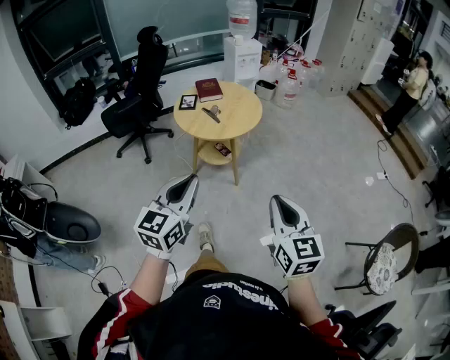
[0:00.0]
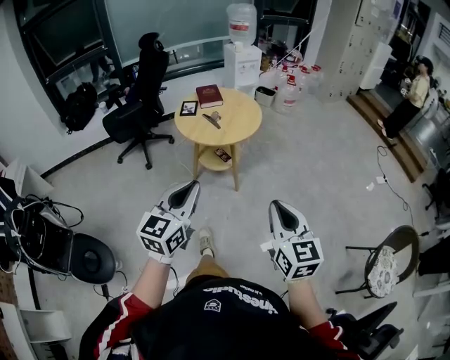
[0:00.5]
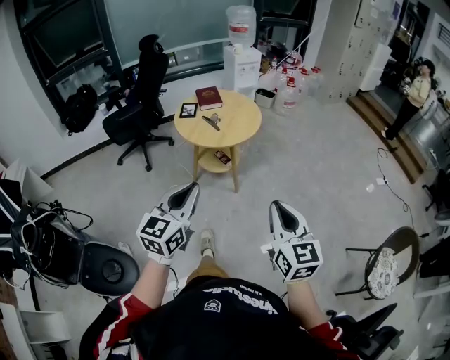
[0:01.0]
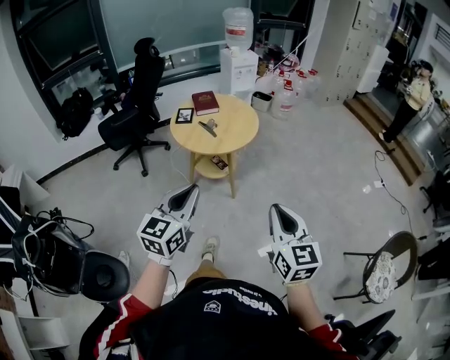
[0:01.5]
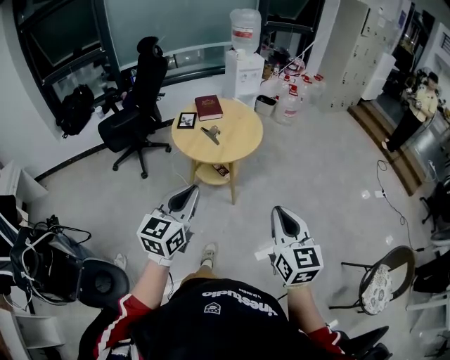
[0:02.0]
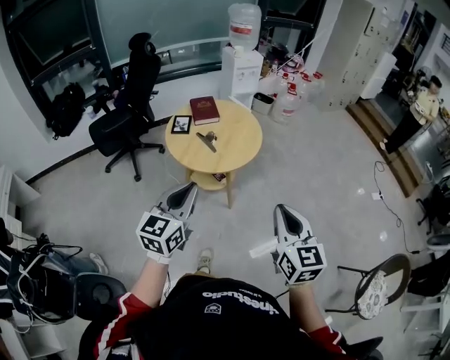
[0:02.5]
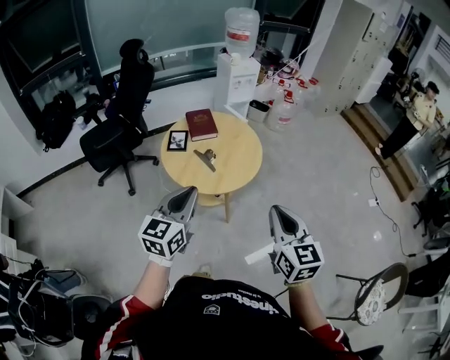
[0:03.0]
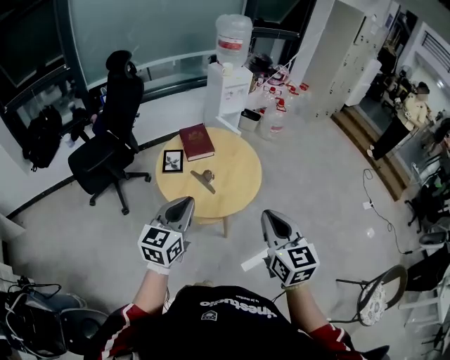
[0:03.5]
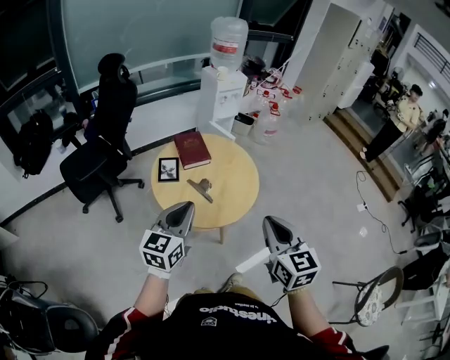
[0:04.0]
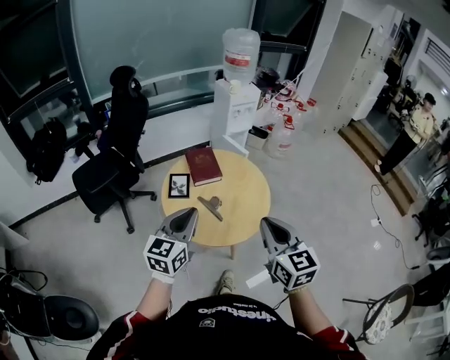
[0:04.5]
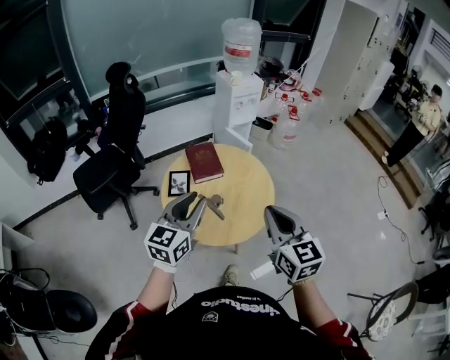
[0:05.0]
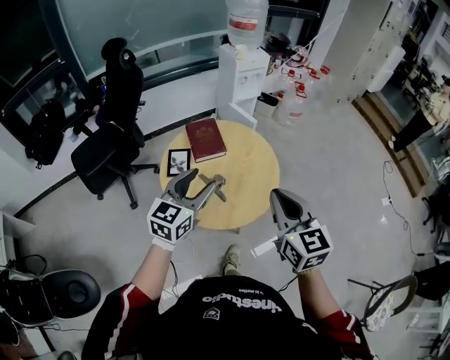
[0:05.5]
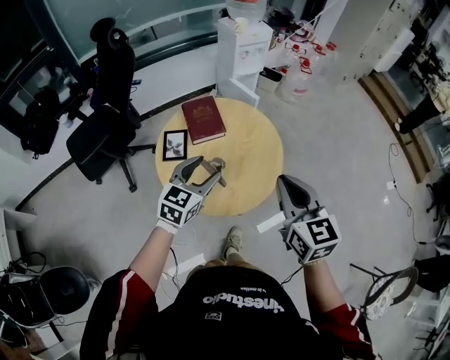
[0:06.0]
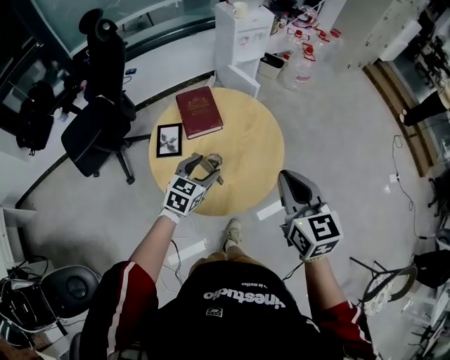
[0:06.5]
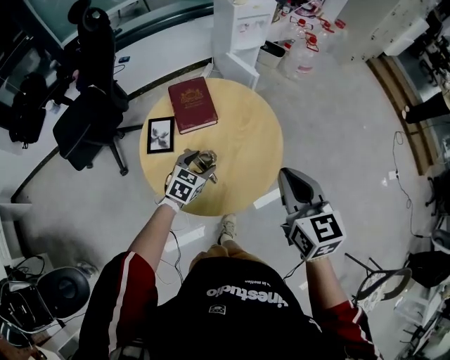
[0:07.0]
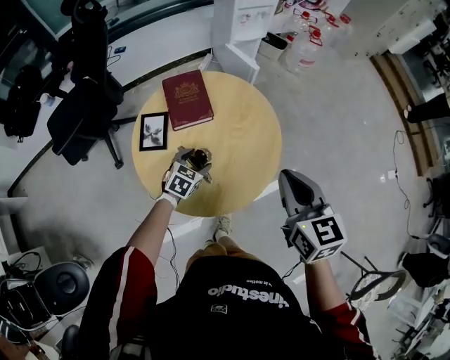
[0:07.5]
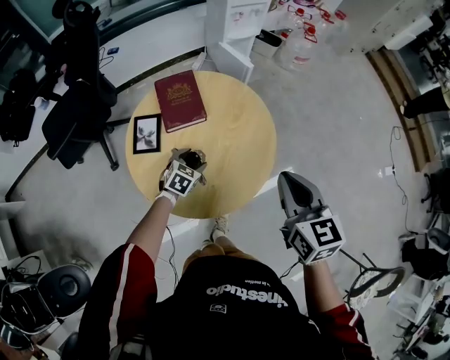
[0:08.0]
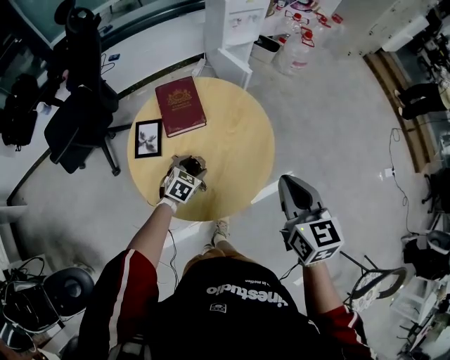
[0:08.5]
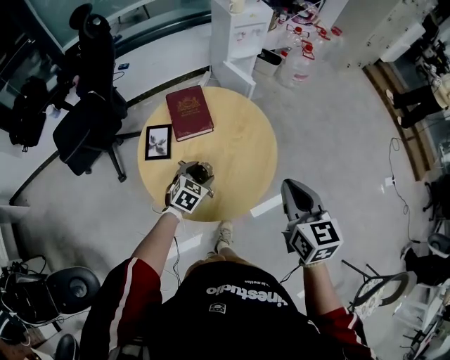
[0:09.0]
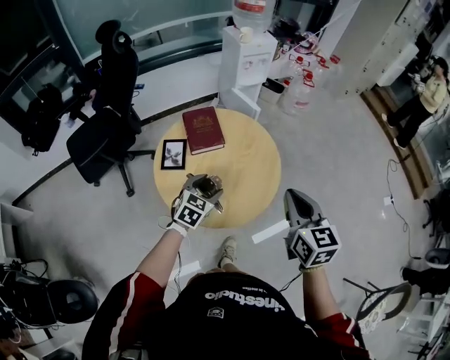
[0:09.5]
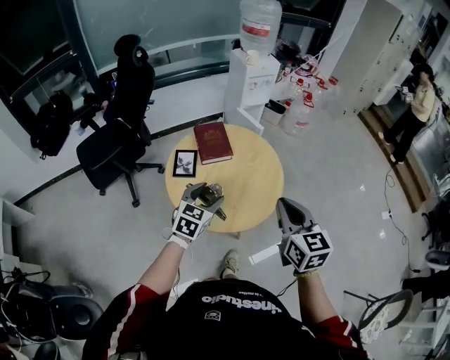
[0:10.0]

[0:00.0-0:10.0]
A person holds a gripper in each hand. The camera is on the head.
0:00.0 to 0:02.0: Both grippers move forward, some 10 cm.
0:02.0 to 0:04.0: The left gripper travels forward by some 35 cm. Meanwhile the right gripper is displaced forward and to the left by some 35 cm.
0:04.0 to 0:06.0: The right gripper heads forward, covering roughly 20 cm. Meanwhile the left gripper goes approximately 20 cm forward and downward, and opens its fingers.
0:06.0 to 0:08.0: The left gripper is displaced downward by approximately 30 cm, and rotates roughly 30 degrees, while the right gripper travels forward, downward and to the right by approximately 15 cm.
0:08.0 to 0:10.0: The right gripper travels backward, upward and to the left by approximately 15 cm, while the left gripper moves upward and backward, about 30 cm, and rotates roughly 20 degrees.

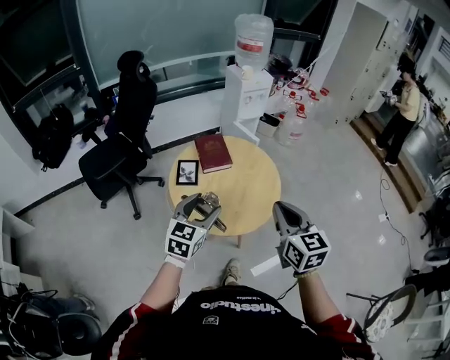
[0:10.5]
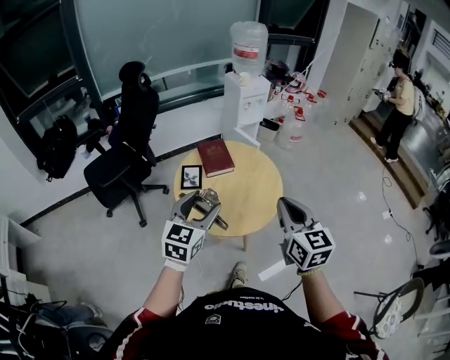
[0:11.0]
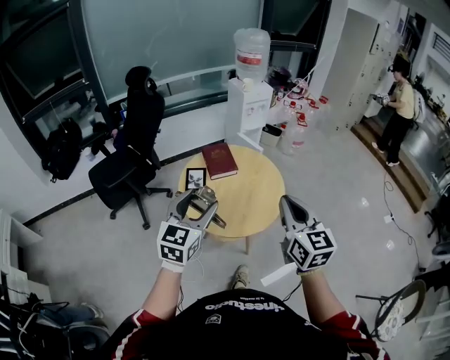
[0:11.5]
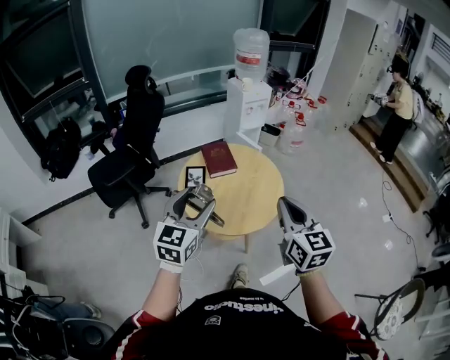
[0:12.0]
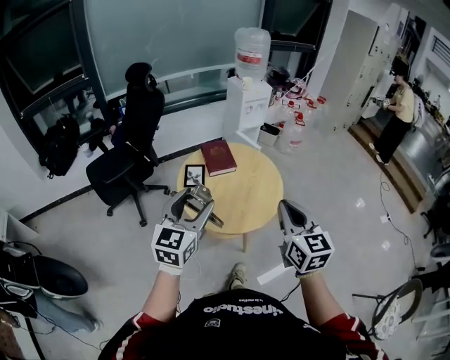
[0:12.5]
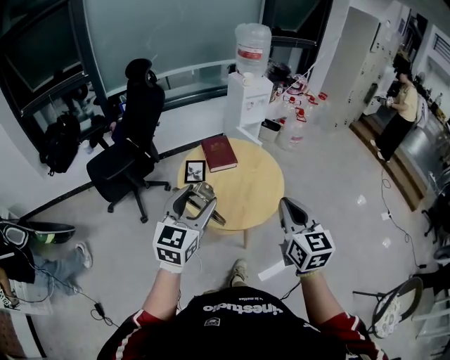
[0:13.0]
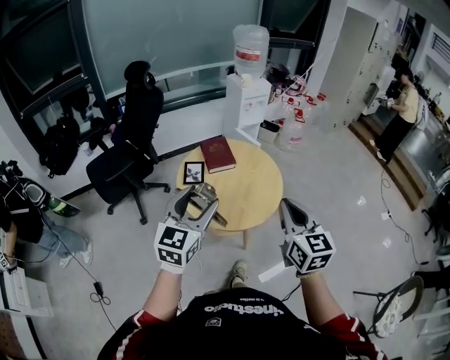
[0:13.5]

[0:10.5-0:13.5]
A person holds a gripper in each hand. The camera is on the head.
0:10.5 to 0:12.0: The right gripper heads upward, covering approximately 5 cm; the left gripper heads upward and backward, covering roughly 15 cm.
0:12.0 to 0:13.5: The grippers stay close to where they were, moving slightly.

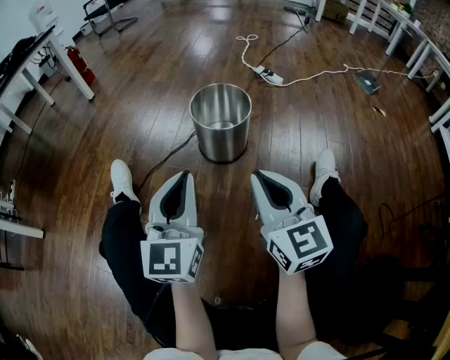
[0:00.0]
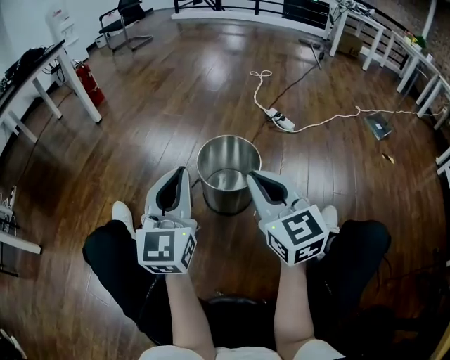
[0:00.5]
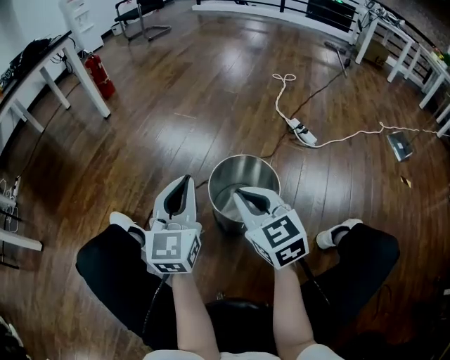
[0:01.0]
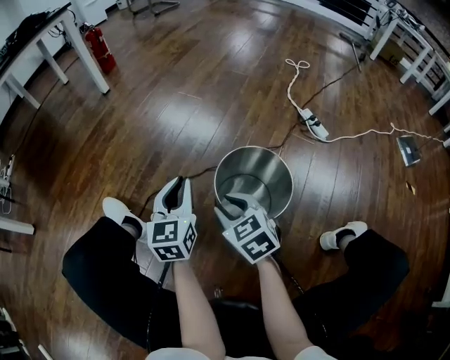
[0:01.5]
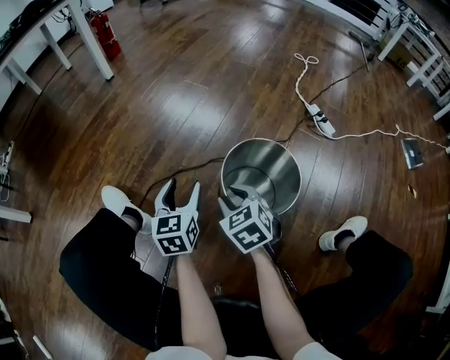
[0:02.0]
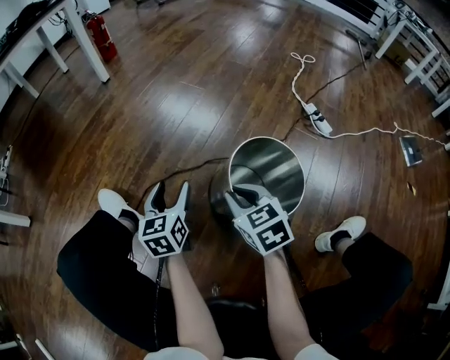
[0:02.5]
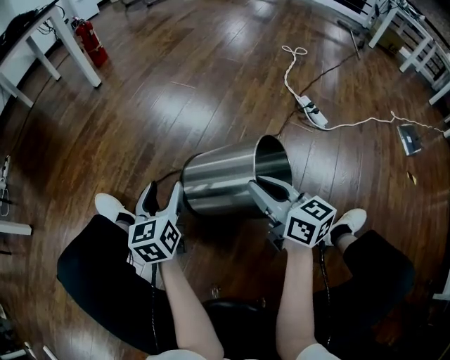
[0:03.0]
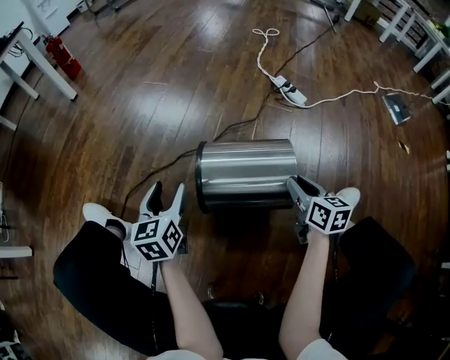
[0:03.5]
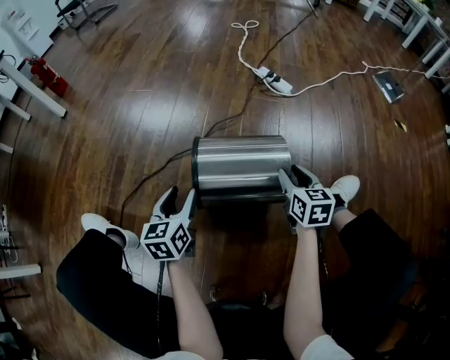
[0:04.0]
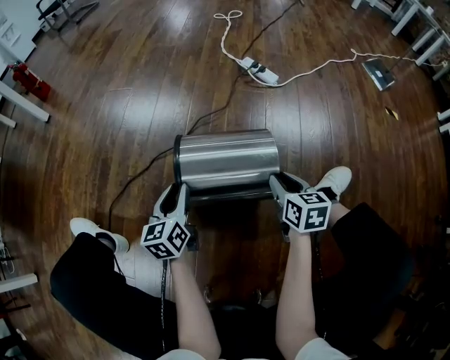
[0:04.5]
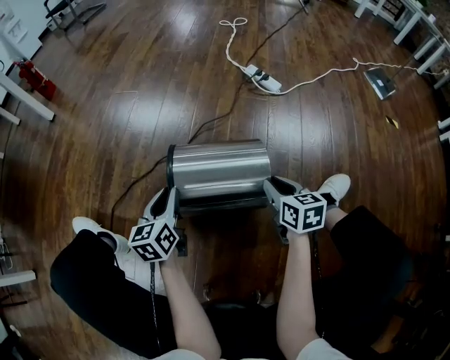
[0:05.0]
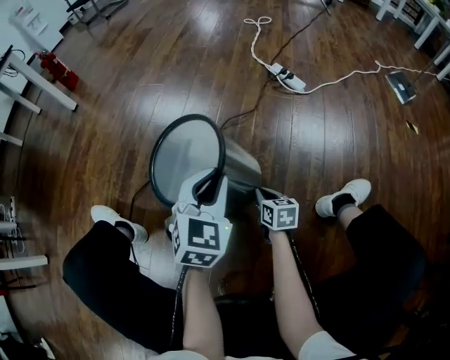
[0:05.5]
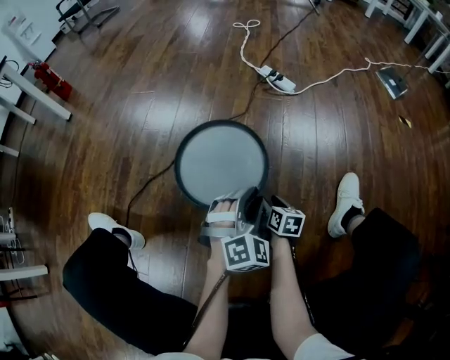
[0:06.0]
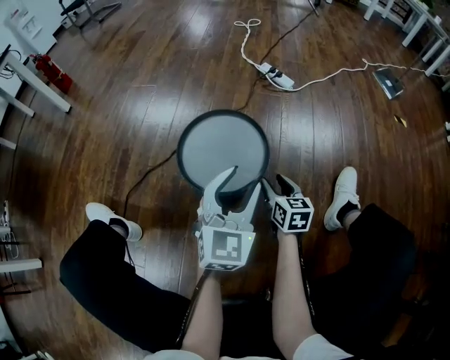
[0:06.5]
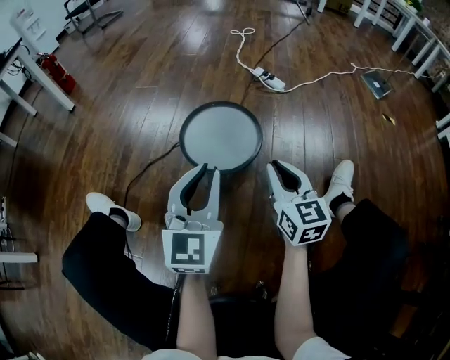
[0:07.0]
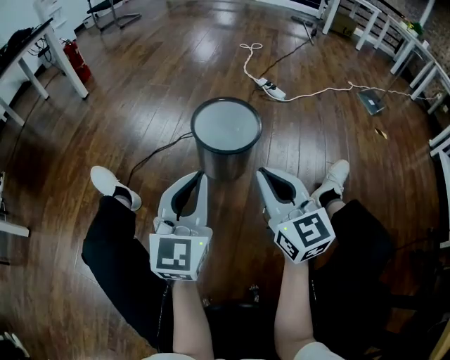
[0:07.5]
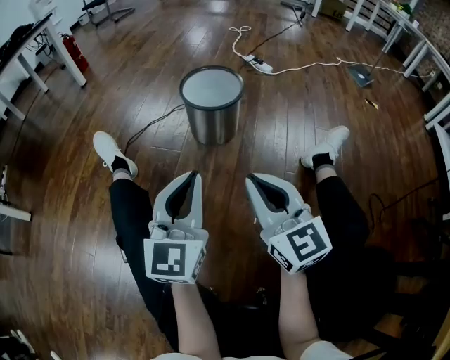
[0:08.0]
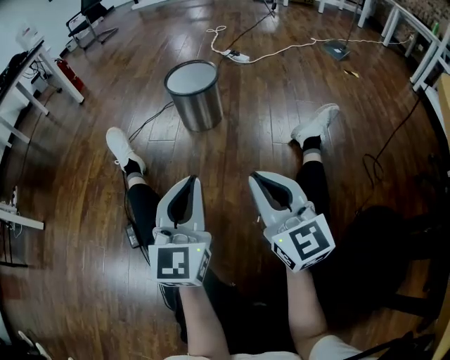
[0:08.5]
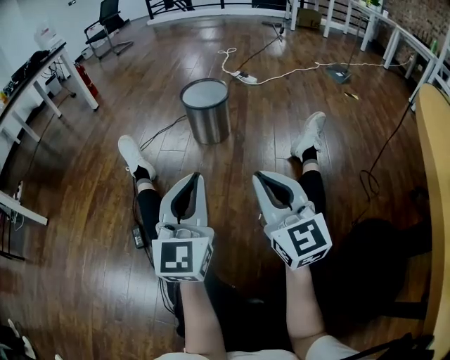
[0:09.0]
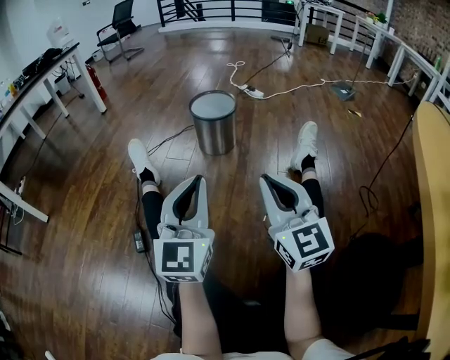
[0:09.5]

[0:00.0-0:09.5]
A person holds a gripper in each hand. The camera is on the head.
0:00.0 to 0:02.0: Both grippers move forward and downward, about 40 cm. The left gripper changes its angle by some 30 degrees, and opens. The right gripper angles its fingers downward, by about 40 degrees, and opens up.
0:02.0 to 0:04.0: The right gripper goes upward and returns, some 10 cm each way, and rotates around the line of its fingers by roughly 40 degrees, clockwise from behind; the left gripper shifts by some 15 cm.
0:04.0 to 0:05.5: The right gripper shifts roughly 15 cm downward and to the left, and closes up. The left gripper heads upward and to the right, covering some 10 cm, swivels some 40 degrees, and closes up.
0:05.5 to 0:07.5: The left gripper is displaced backward and upward by some 25 cm, turns by some 30 degrees, and opens, then closes once more. Meanwhile the right gripper heads upward and backward, covering about 40 cm, points its fingers about 40 degrees further upward, and opens and closes again.
0:07.5 to 0:09.5: Both grippers move backward, approximately 35 cm.

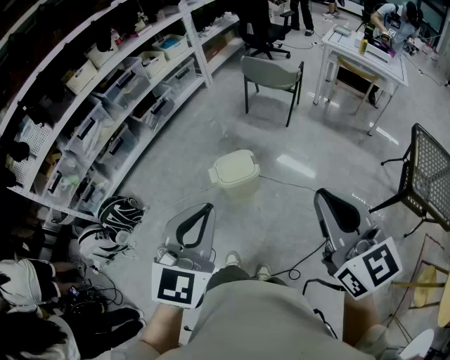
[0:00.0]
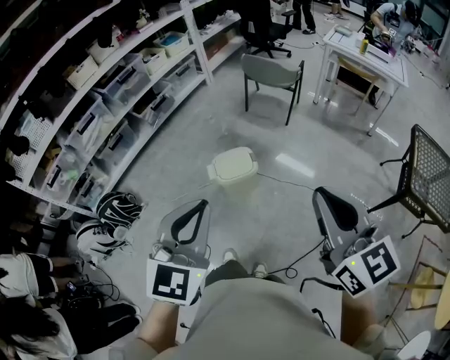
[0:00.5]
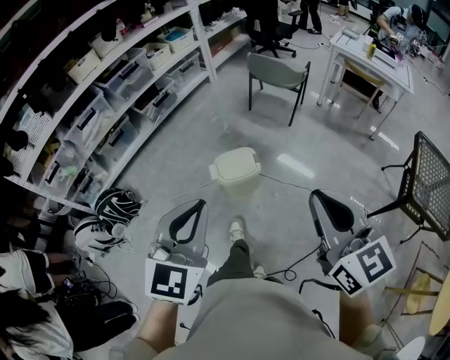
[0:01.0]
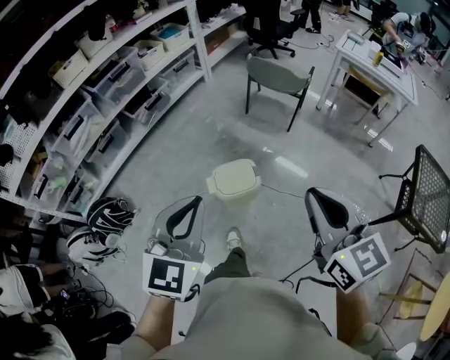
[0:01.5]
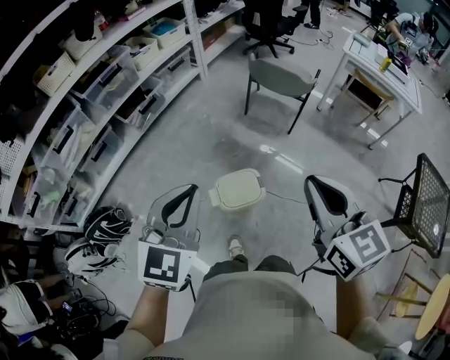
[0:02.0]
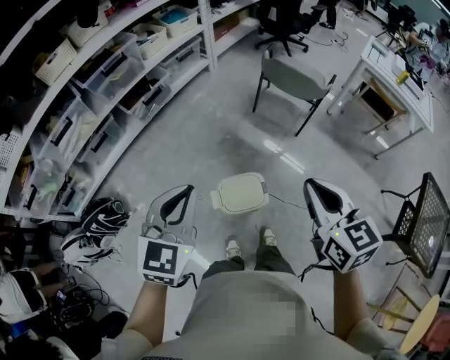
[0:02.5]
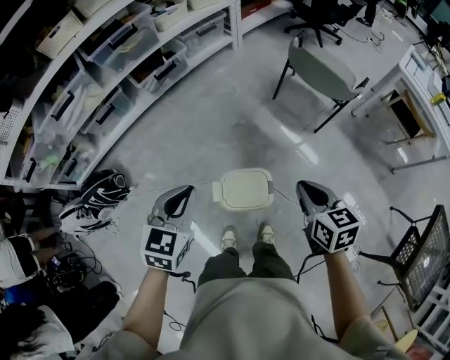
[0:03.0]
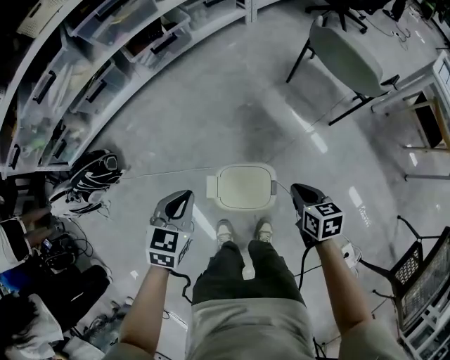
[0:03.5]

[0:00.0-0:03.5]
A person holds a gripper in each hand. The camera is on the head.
0:00.0 to 0:02.0: The right gripper shifts about 30 cm forward. Meanwhile the left gripper goes roughly 30 cm forward and to the left.
0:02.0 to 0:03.5: The left gripper is displaced downward by about 35 cm, and rotates approximately 30 degrees. Meanwhile the right gripper heads downward and forward, covering about 50 cm, and tips its fingers downward by approximately 30 degrees.
